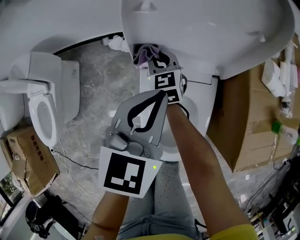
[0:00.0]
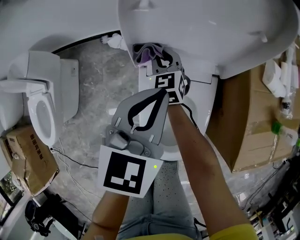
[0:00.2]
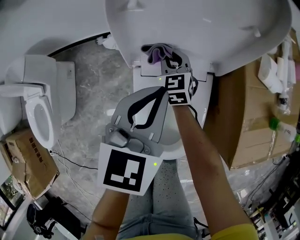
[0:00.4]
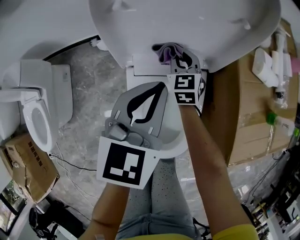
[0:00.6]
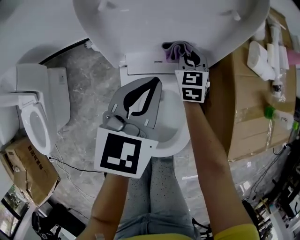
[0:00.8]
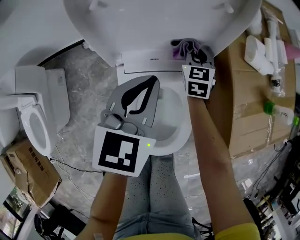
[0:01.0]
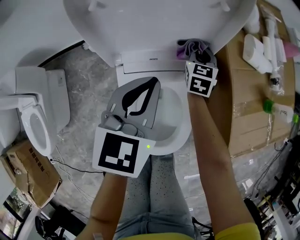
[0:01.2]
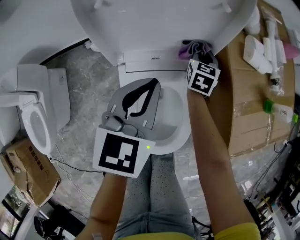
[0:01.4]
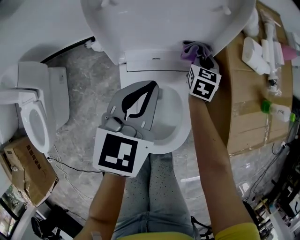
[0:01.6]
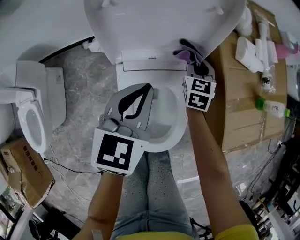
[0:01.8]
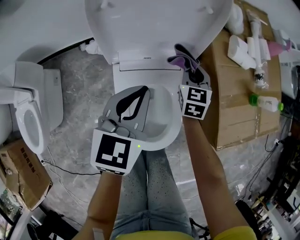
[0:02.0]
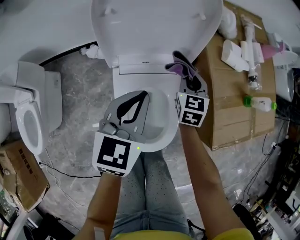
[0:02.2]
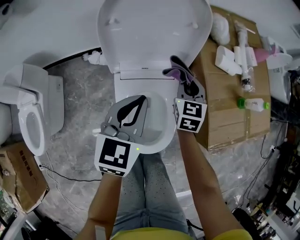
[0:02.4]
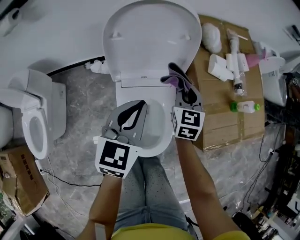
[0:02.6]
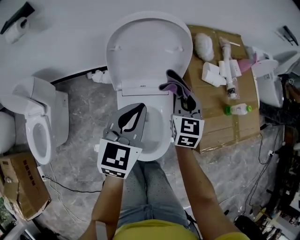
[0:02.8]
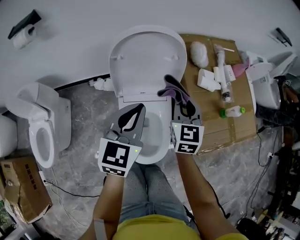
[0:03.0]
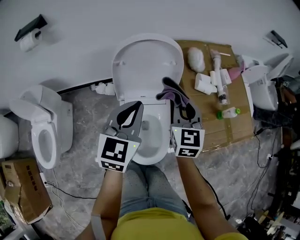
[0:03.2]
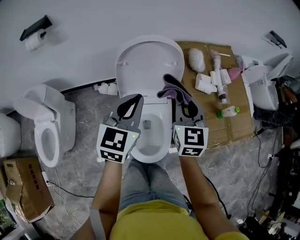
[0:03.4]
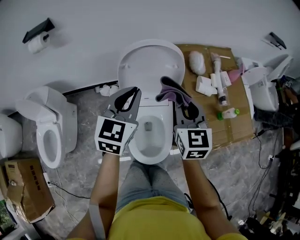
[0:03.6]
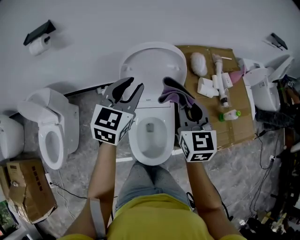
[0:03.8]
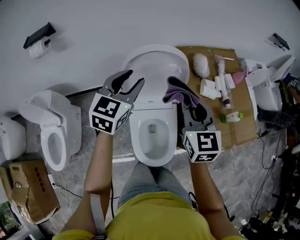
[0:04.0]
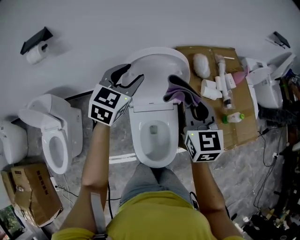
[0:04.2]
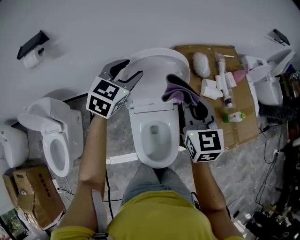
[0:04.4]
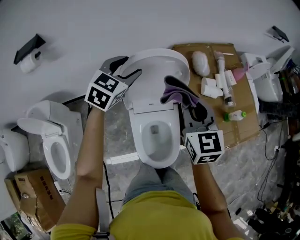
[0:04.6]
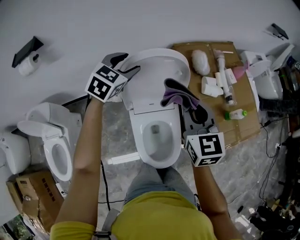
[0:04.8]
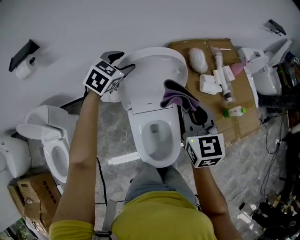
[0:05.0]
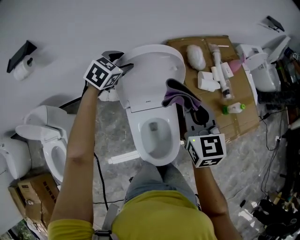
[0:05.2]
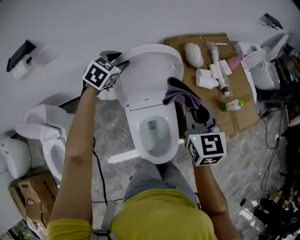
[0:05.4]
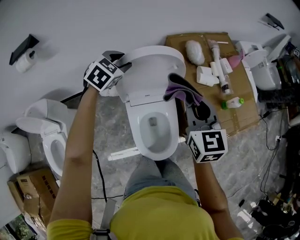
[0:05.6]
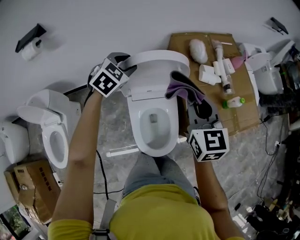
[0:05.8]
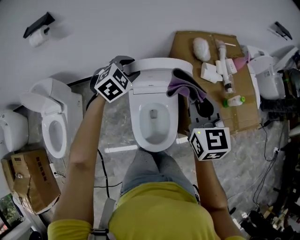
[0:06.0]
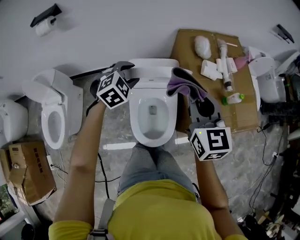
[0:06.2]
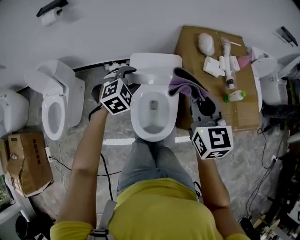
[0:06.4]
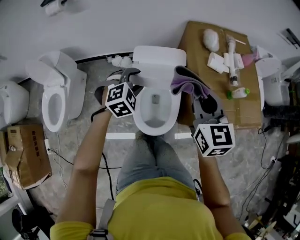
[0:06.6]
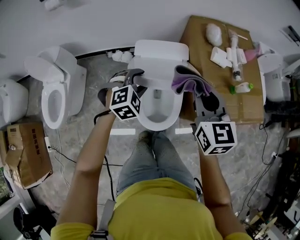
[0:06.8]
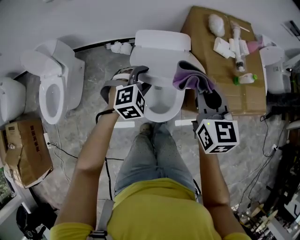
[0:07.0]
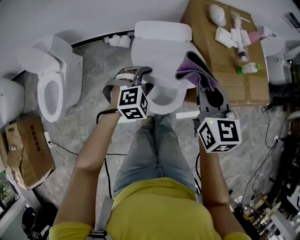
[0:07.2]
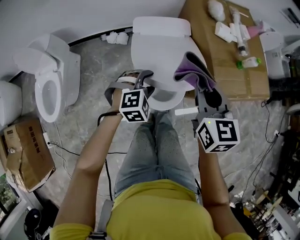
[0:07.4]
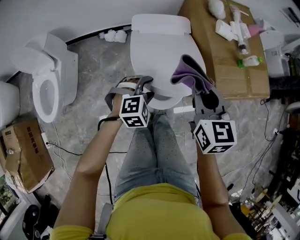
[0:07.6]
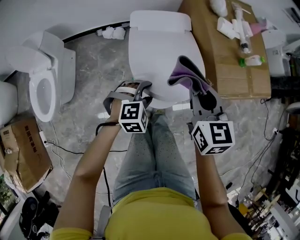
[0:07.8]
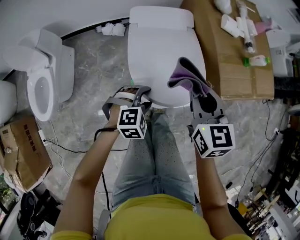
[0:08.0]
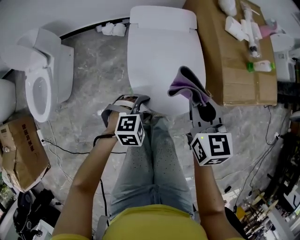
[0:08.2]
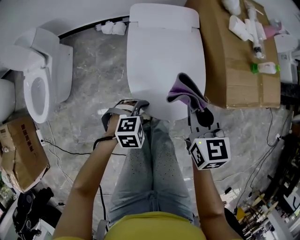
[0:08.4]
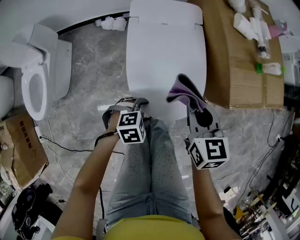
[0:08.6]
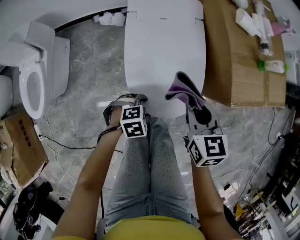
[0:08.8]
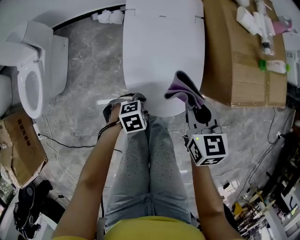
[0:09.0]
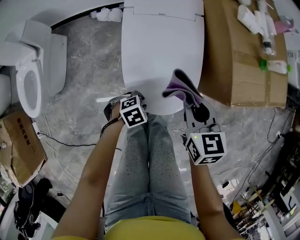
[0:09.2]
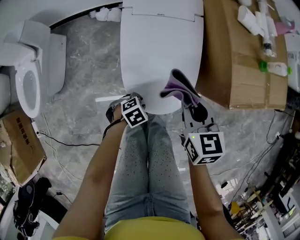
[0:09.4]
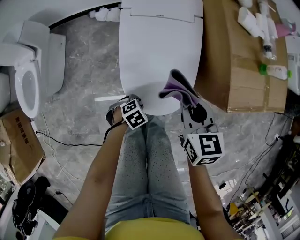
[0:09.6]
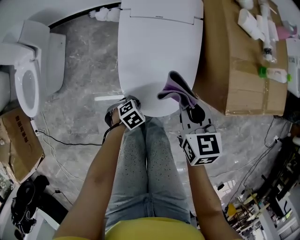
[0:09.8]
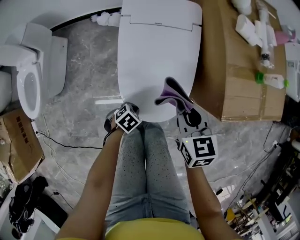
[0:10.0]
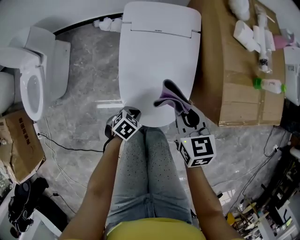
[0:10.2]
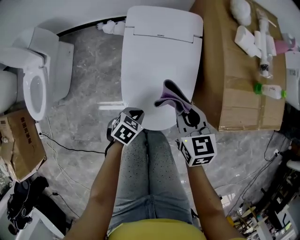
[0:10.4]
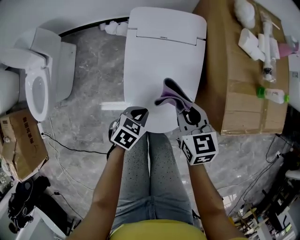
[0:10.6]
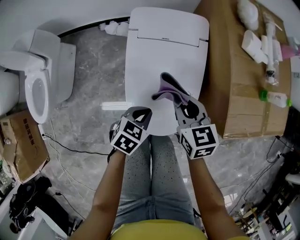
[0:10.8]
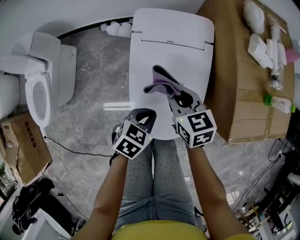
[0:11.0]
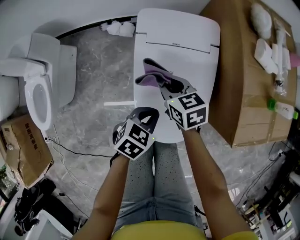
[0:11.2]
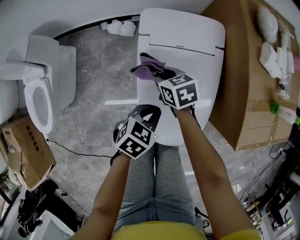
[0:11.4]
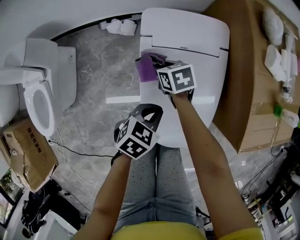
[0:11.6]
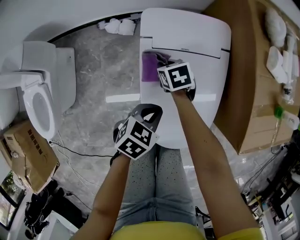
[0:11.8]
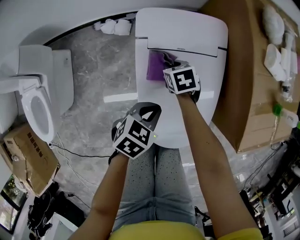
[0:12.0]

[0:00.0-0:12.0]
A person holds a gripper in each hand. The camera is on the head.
0:00.0 to 0:01.6: The left gripper goes some 5 cm to the right; the right gripper heads to the right, covering some 30 cm, and changes its angle by approximately 40 degrees.
0:01.6 to 0:03.0: The left gripper shifts roughly 20 cm upward. The right gripper is displaced upward and backward by roughly 35 cm, and rotates some 20 degrees.
0:03.0 to 0:04.4: The right gripper goes some 15 cm upward, while the left gripper heads forward and to the left, covering approximately 20 cm, and opens its fingers.
0:04.4 to 0:06.0: The left gripper is displaced downward and backward by about 10 cm, and swivels about 30 degrees; the right gripper travels backward and to the right by about 10 cm.
0:06.0 to 0:07.6: The left gripper heads backward and downward, covering about 35 cm; the right gripper heads backward and downward, covering approximately 20 cm.
0:07.6 to 0:09.0: The two grippers go some 20 cm downward. The left gripper swivels approximately 40 degrees.
0:09.0 to 0:10.4: The grippers both shift forward by roughly 5 cm. The left gripper moves some 10 cm downward and comes back, changes its angle by roughly 40 degrees, and closes up.
0:10.4 to 0:12.0: The left gripper shifts about 15 cm forward and to the left. The right gripper is displaced downward, forward and to the left by some 35 cm, and changes its angle by some 30 degrees.

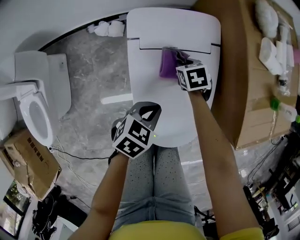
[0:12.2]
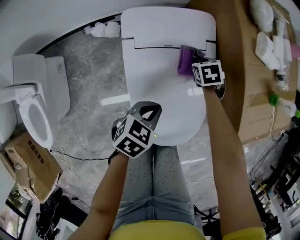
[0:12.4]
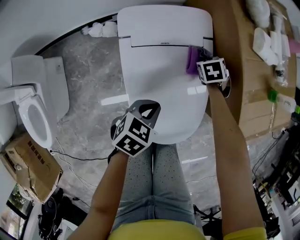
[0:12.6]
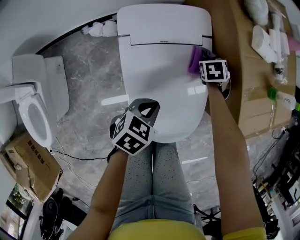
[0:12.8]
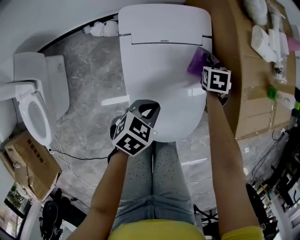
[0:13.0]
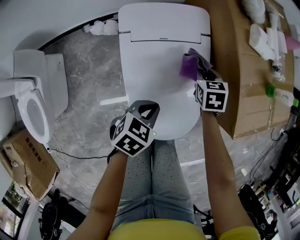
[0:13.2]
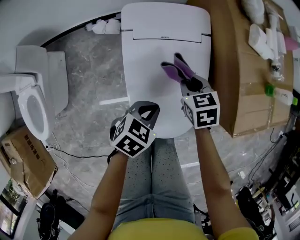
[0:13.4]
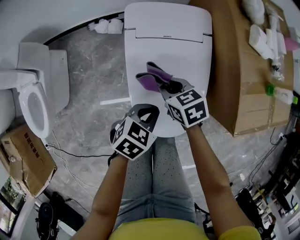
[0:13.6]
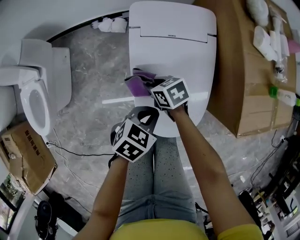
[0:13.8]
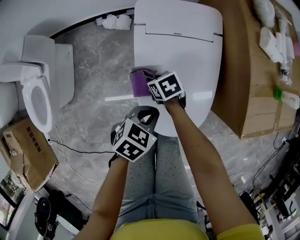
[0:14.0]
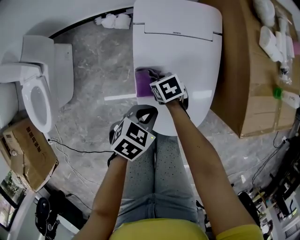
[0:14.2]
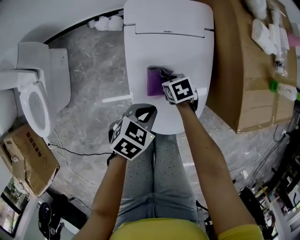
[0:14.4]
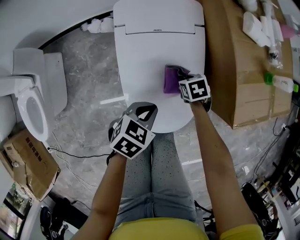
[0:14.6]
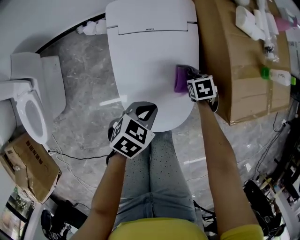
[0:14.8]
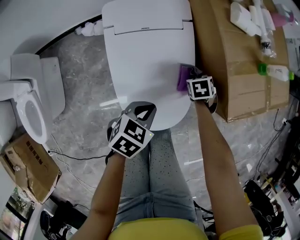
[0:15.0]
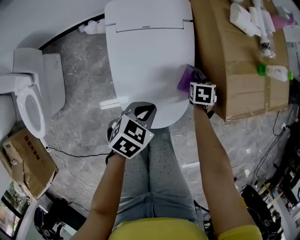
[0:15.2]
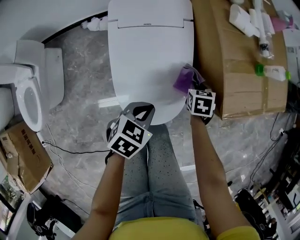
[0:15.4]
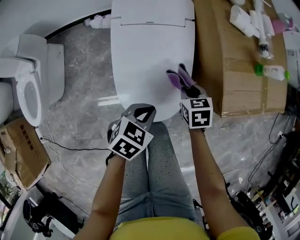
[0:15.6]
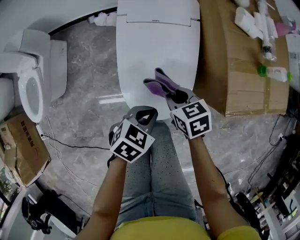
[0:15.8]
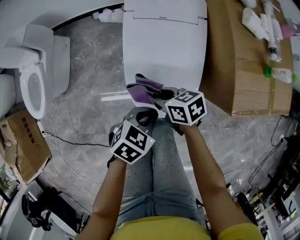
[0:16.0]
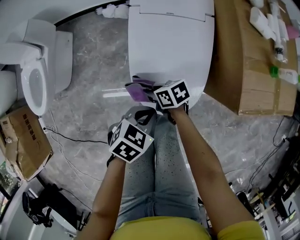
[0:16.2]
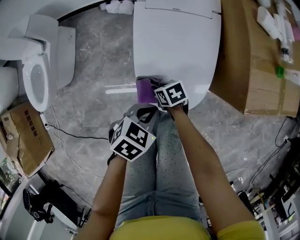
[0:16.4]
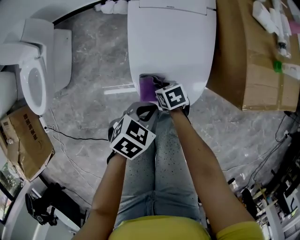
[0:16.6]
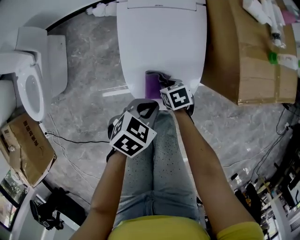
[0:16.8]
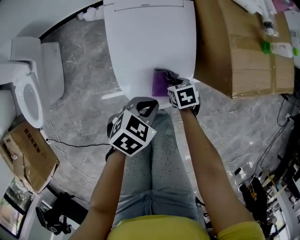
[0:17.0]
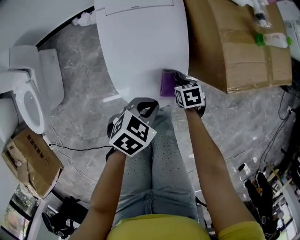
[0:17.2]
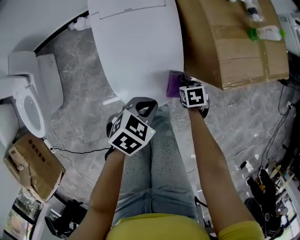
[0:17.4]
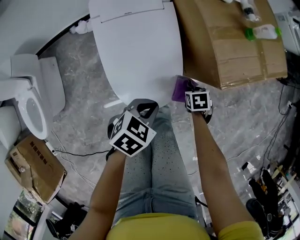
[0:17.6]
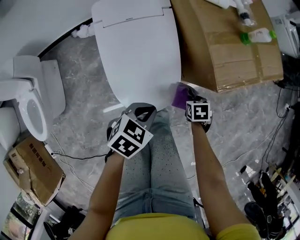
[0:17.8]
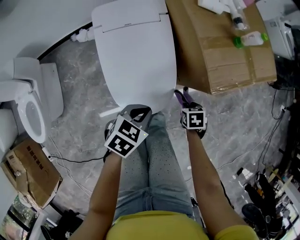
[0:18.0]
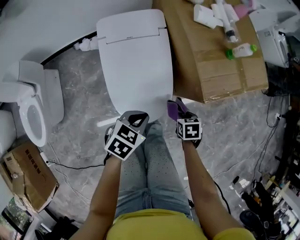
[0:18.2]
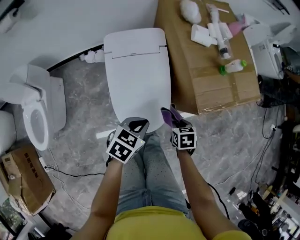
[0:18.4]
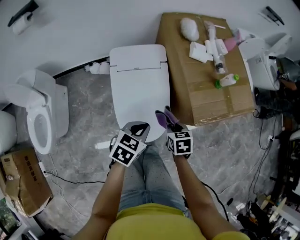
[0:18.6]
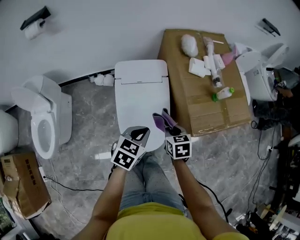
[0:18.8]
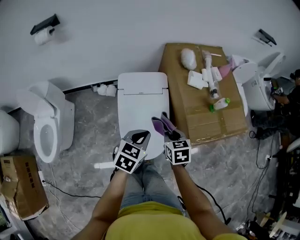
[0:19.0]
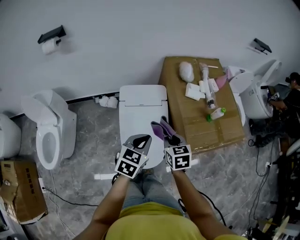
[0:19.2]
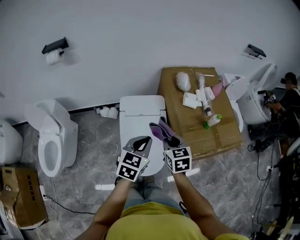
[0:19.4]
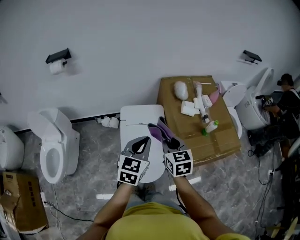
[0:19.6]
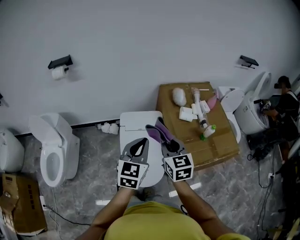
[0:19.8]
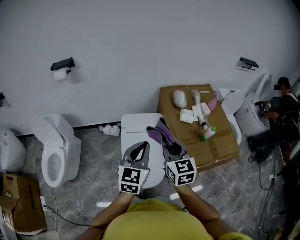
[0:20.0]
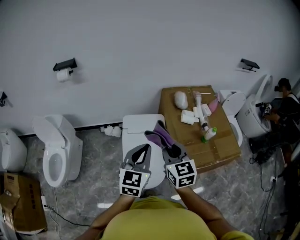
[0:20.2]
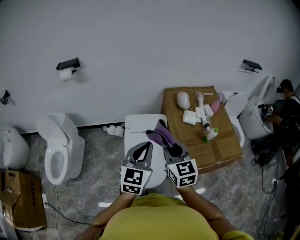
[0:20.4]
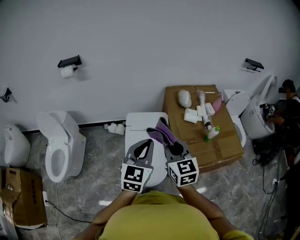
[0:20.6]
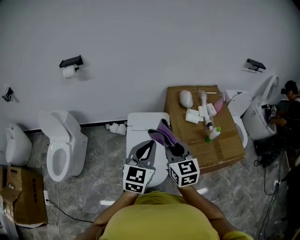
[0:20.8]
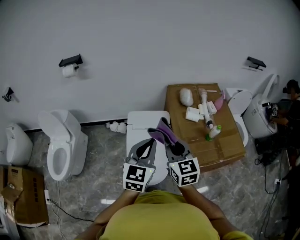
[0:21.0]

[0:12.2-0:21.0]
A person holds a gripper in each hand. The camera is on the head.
0:12.2 to 0:13.6: The right gripper changes place by about 20 cm, and rotates about 20 degrees, while the left gripper shifts by approximately 10 cm.
0:13.6 to 0:15.2: The left gripper moves about 5 cm, while the right gripper ends up about 30 cm from where it was, and turns by approximately 40 degrees.
0:15.2 to 0:16.6: The left gripper changes place by roughly 10 cm. Meanwhile the right gripper goes upward and returns, roughly 15 cm each way, and changes its angle by about 40 degrees.
0:16.6 to 0:18.0: The left gripper changes place by about 10 cm, while the right gripper moves some 25 cm, and swivels some 40 degrees.
0:18.0 to 0:19.6: The grippers both shift upward by approximately 40 cm. The left gripper points its fingers roughly 30 degrees further upward. Meanwhile the right gripper tips its fingers upward by some 50 degrees.
0:19.6 to 0:21.0: The two grippers go about 5 cm upward.

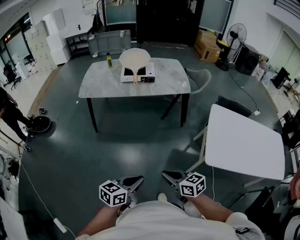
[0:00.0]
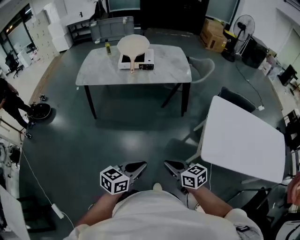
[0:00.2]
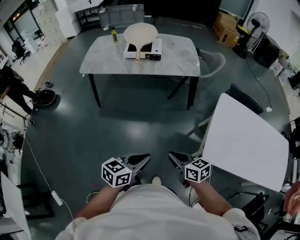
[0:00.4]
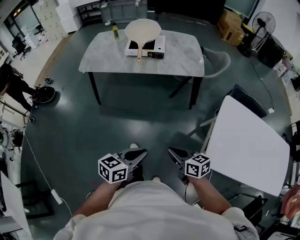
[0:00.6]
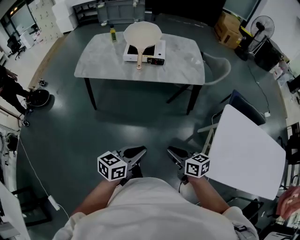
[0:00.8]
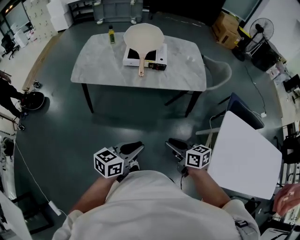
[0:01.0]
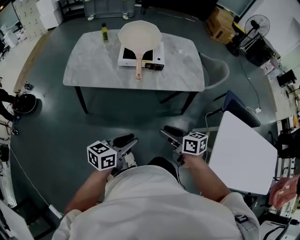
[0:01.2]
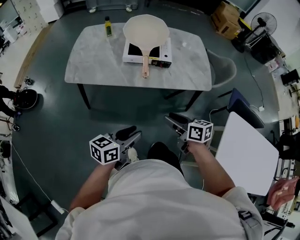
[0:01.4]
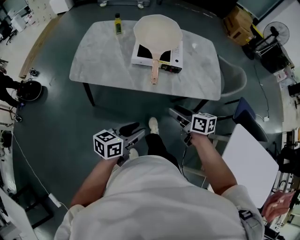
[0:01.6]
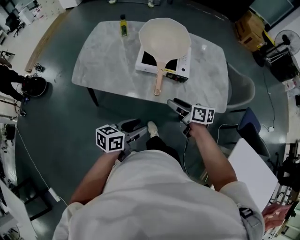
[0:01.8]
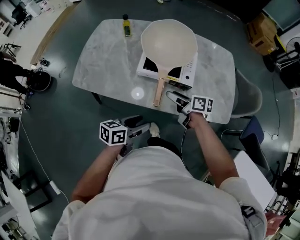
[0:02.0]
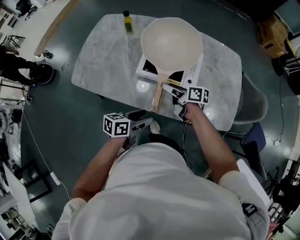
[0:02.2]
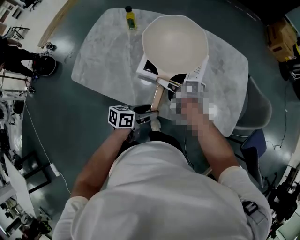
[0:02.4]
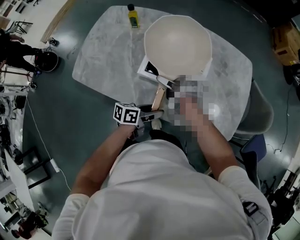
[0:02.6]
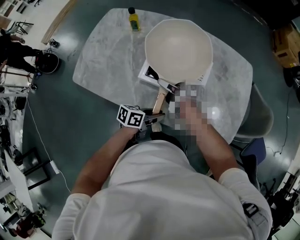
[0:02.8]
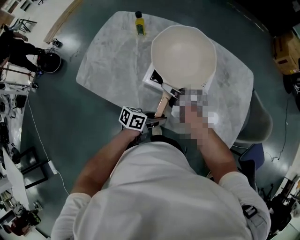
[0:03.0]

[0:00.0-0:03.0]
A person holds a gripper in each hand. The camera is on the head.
0:00.0 to 0:01.6: The two grippers travel together, forward, roughly 50 cm. The left gripper opens its fingers. The right gripper opens its fingers.
0:01.6 to 0:03.0: The left gripper changes place by some 30 cm, changes its angle by some 20 degrees, and opens, then closes again. The right gripper shifts by some 35 cm, and changes its angle by roughly 30 degrees.
